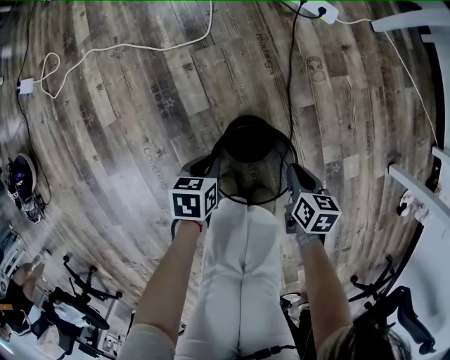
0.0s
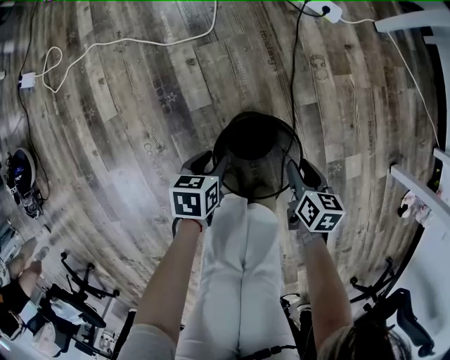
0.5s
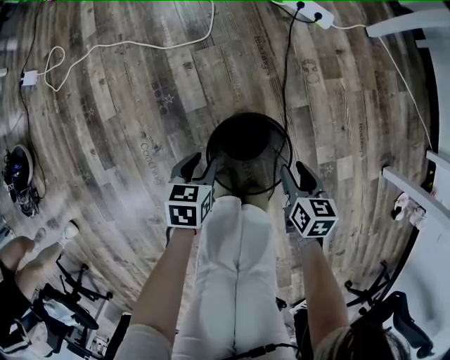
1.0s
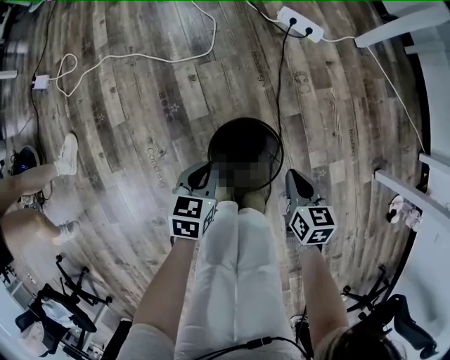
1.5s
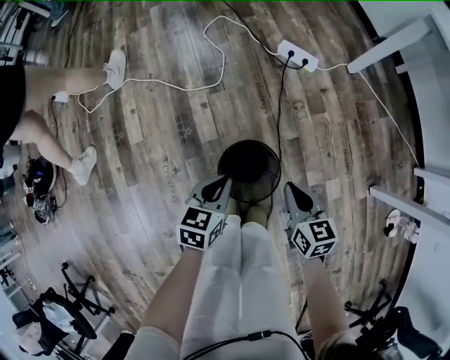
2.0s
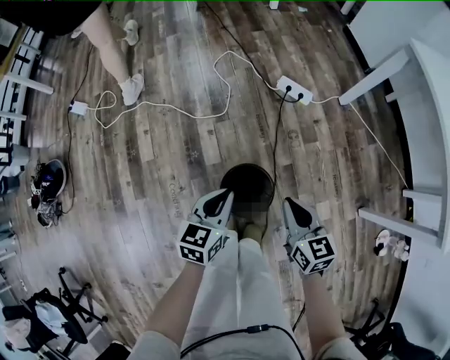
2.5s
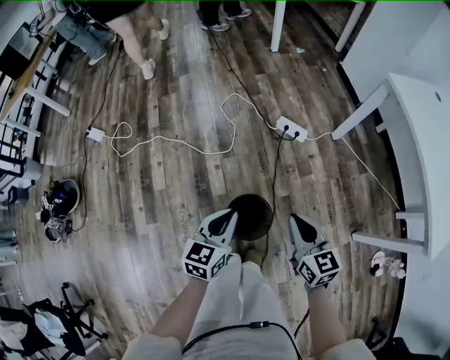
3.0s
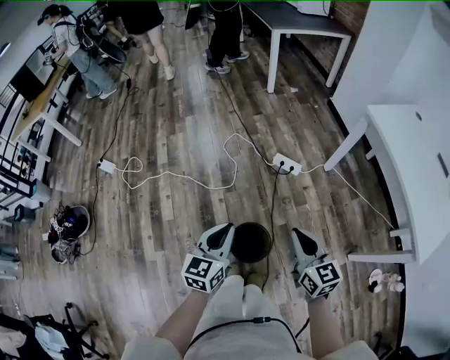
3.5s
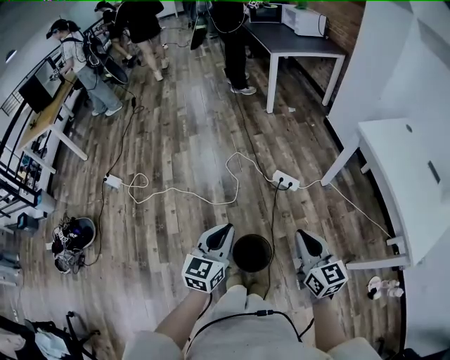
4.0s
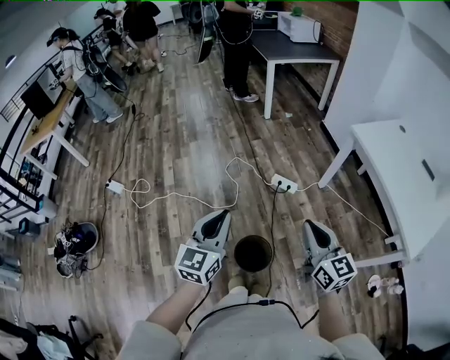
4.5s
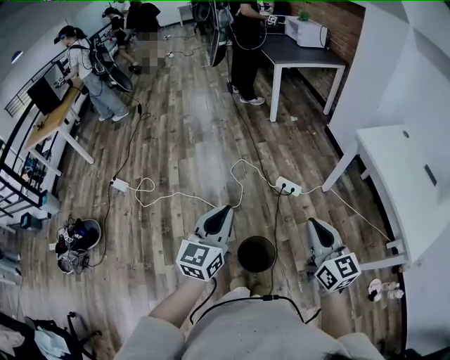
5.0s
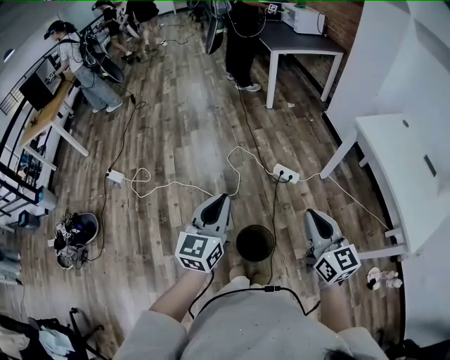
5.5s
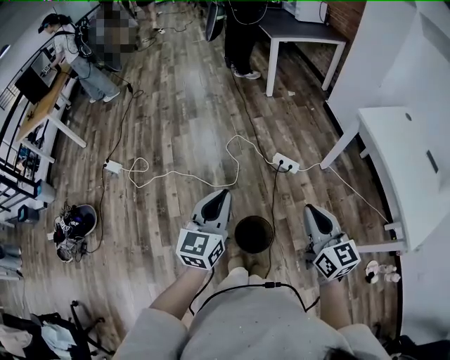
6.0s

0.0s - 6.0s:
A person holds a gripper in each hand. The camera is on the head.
0.0s - 2.0s: Both grippers travel together upward, about 25 cm. The left gripper swivels approximately 30 degrees, and opens and closes again, while the right gripper turns by some 30 degrees, and opens and closes again.
2.0s - 4.0s: Both grippers travel together upward, about 50 cm. The right gripper swivels approximately 30 degrees. Meanwhile the left gripper rotates approximately 30 degrees.
4.0s - 6.0s: The two grippers go roughly 10 cm upward.

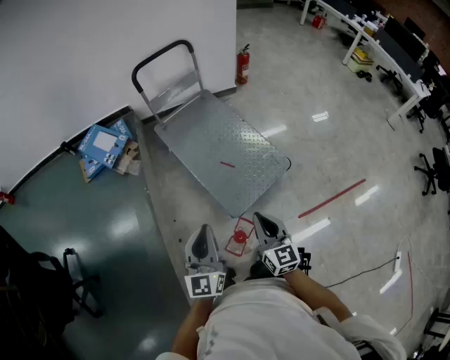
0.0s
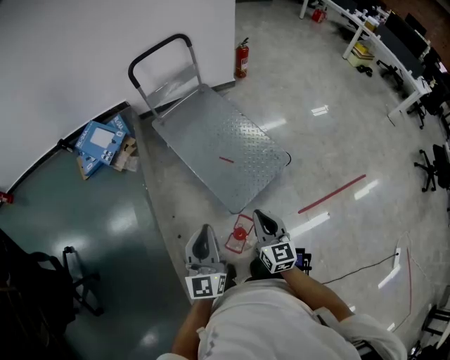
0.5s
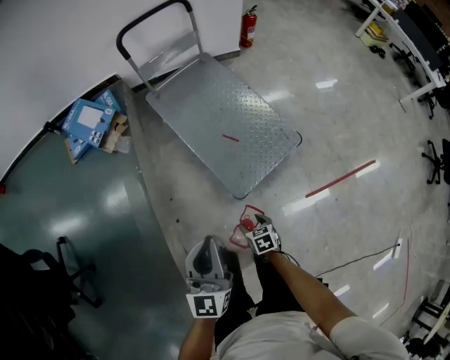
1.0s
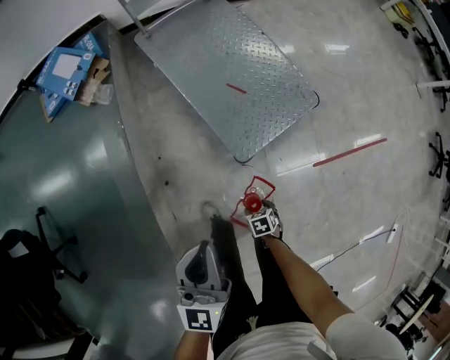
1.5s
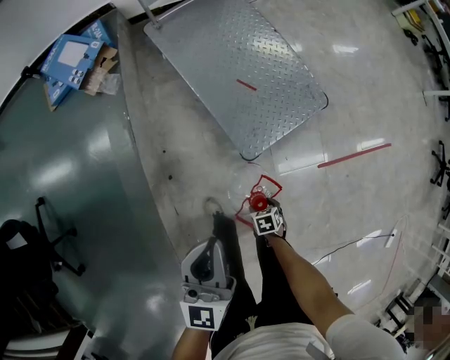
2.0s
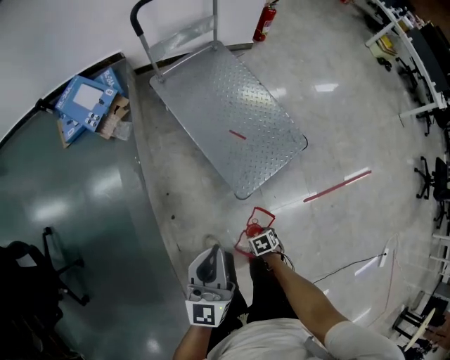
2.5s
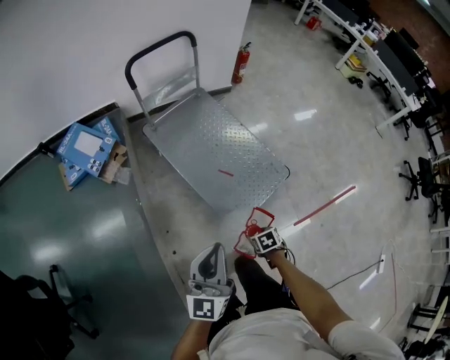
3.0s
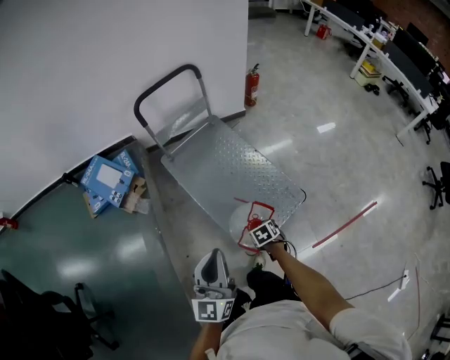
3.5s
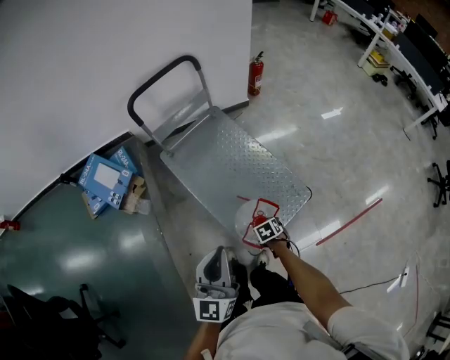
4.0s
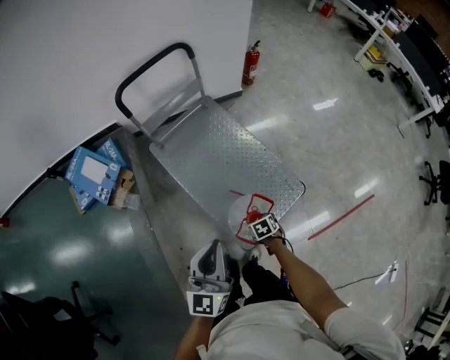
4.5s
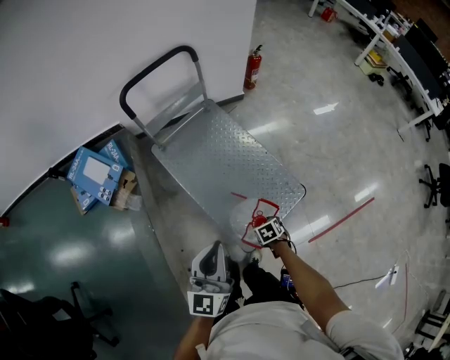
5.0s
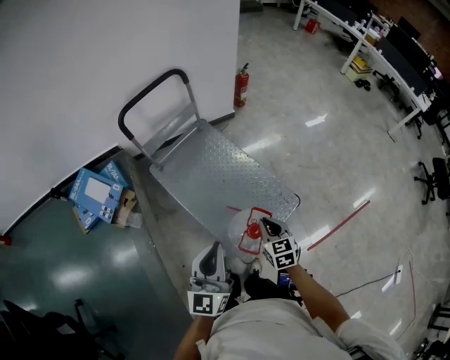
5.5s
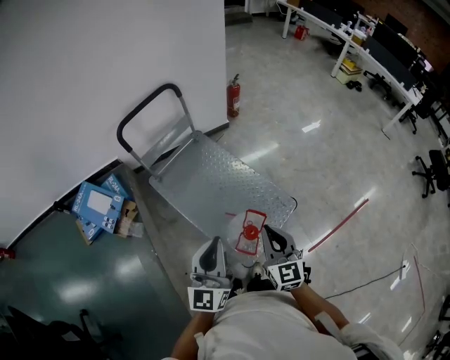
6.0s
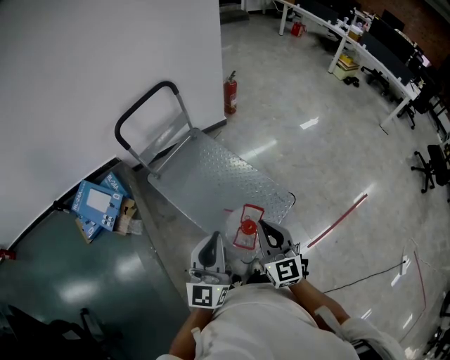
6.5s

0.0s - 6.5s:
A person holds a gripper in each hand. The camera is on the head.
0.0s - 2.0s: The right gripper heads downward, covering approximately 50 cm, tips its fingers downward by roughly 70 degrees, and opens its fingers; the left gripper goes some 15 cm downward.
2.0s - 4.5s: The left gripper shifts by some 35 cm. Meanwhile the right gripper ends up about 40 cm from where it was.
4.5s - 6.5s: The right gripper travels upward by some 40 cm, tilts its fingers about 70 degrees upward, and closes; the left gripper goes about 10 cm upward.

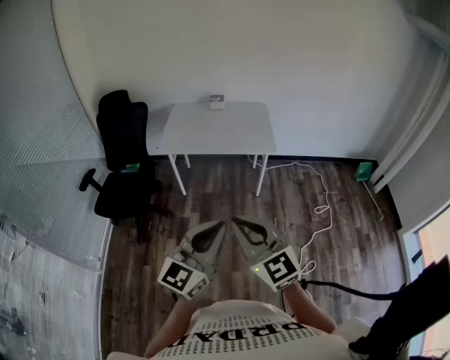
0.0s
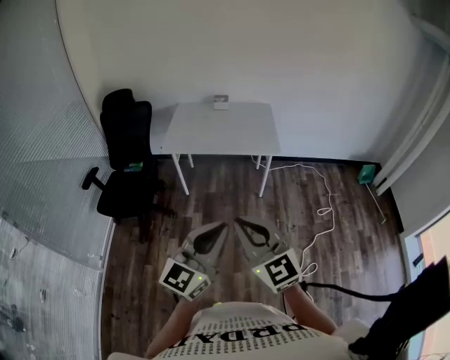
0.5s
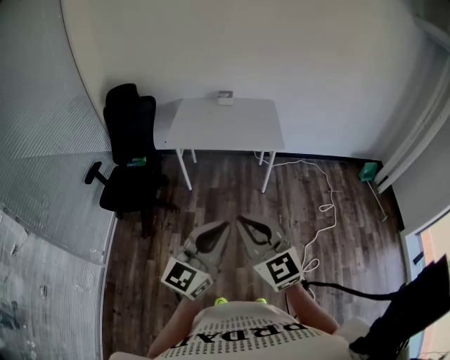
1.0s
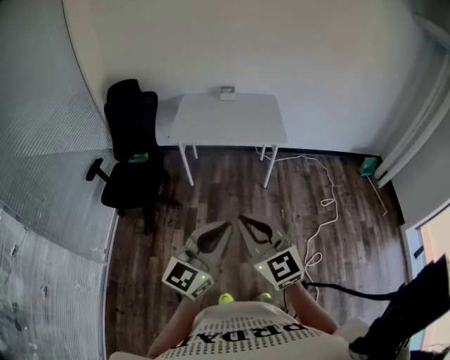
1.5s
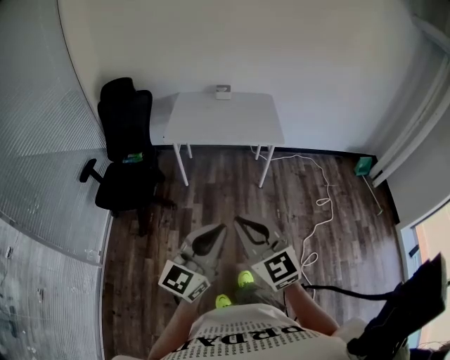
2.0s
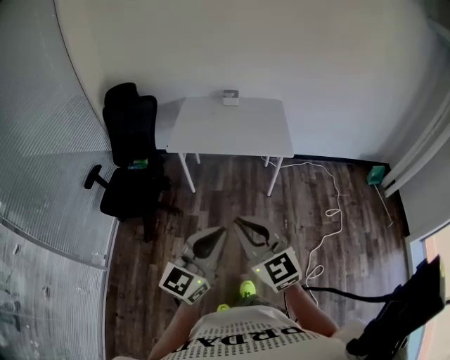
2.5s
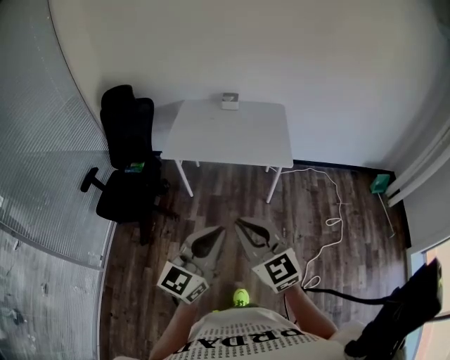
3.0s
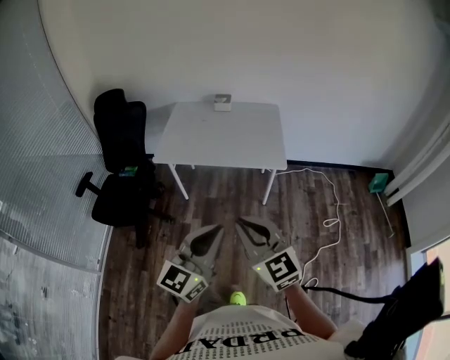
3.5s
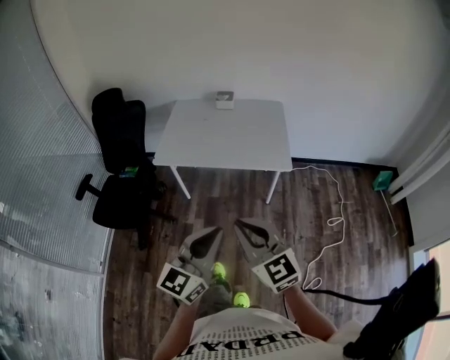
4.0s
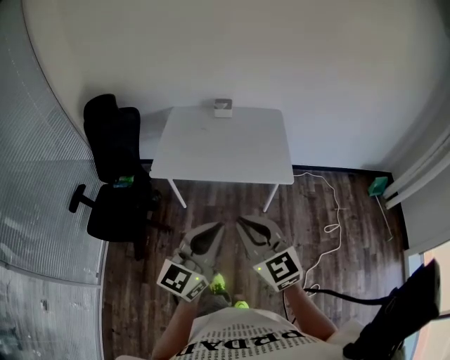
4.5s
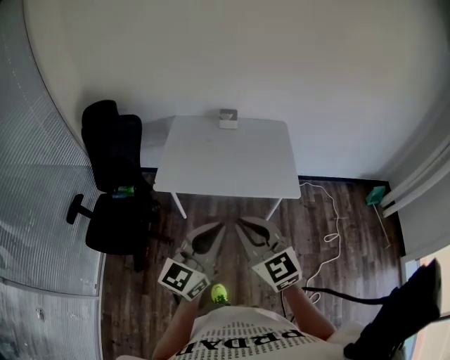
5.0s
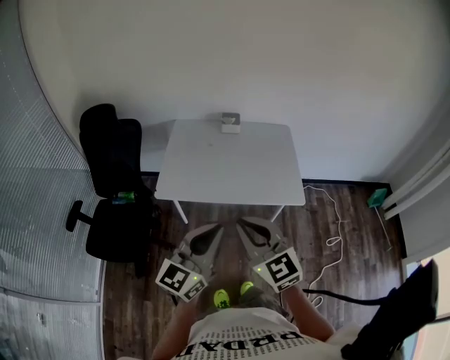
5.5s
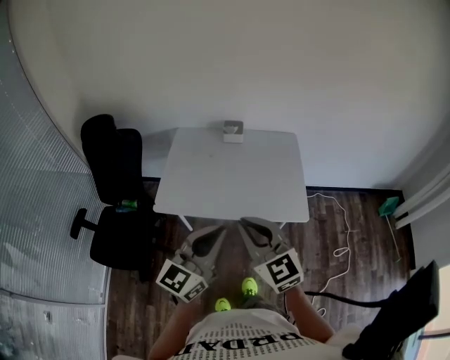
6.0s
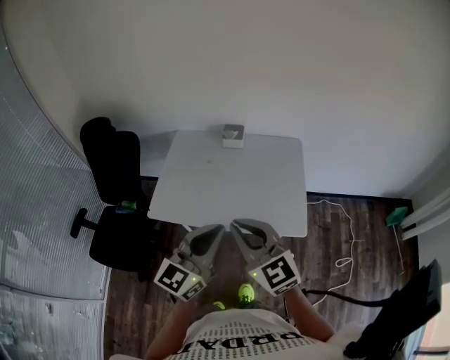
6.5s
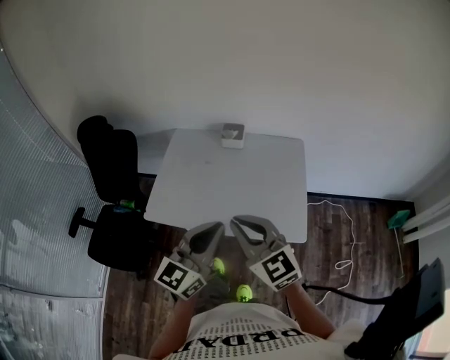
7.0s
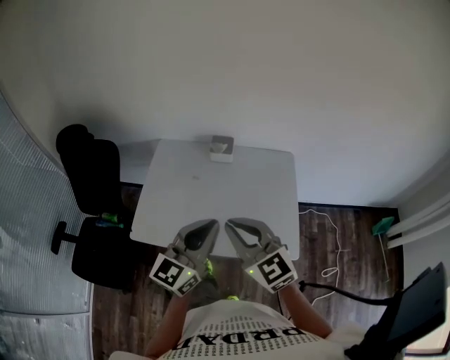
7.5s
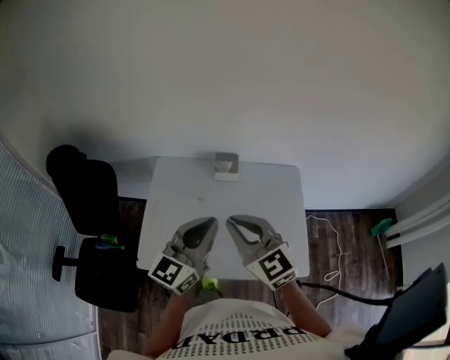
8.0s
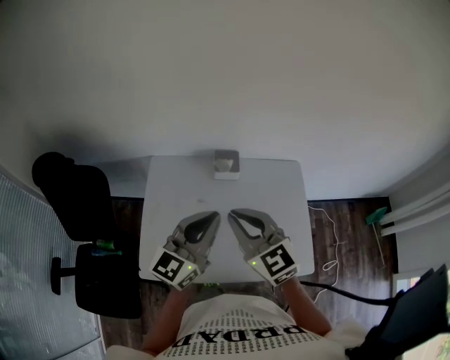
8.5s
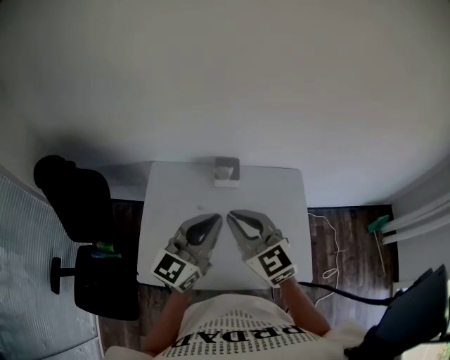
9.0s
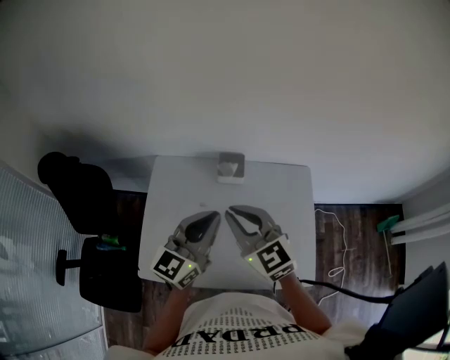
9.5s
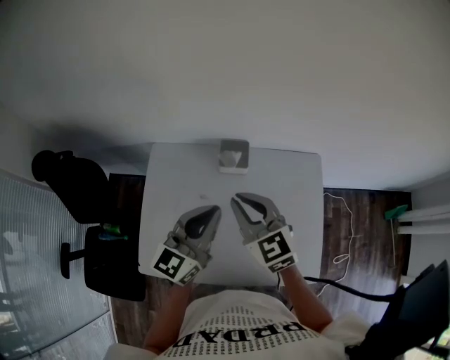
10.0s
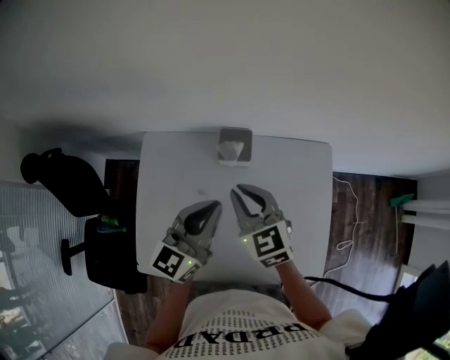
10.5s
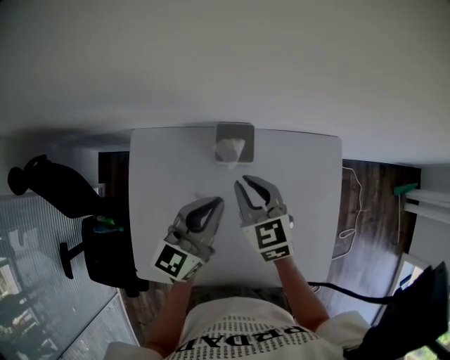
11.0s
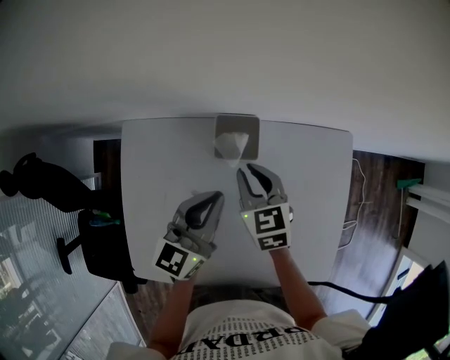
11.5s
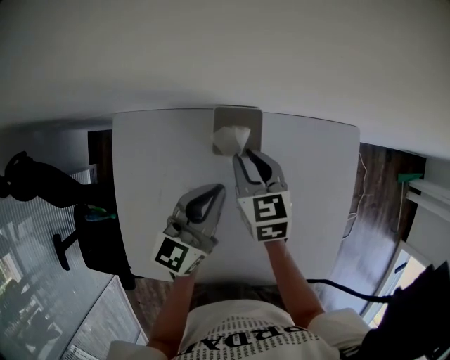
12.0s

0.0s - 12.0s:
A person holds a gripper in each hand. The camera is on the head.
0.0s - 2.0s: Both grippers move to the left, some 5 cm.
2.0s - 4.0s: Both grippers travel together forward and to the right, roughly 25 cm.
4.0s - 6.0s: The two grippers go roughly 30 cm forward.
6.0s - 8.0s: Both grippers move forward, approximately 35 cm.
8.0s - 10.0s: The two grippers go about 20 cm forward and downward.
10.0s - 12.0s: The grippers both shift downward and forward by roughly 25 cm. The right gripper turns by roughly 30 degrees.

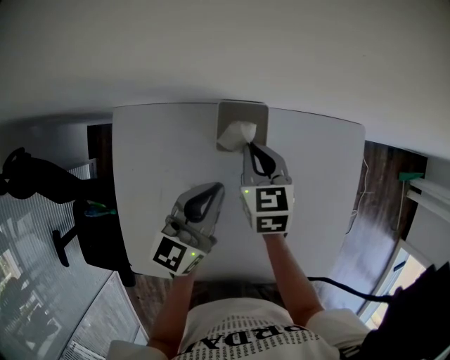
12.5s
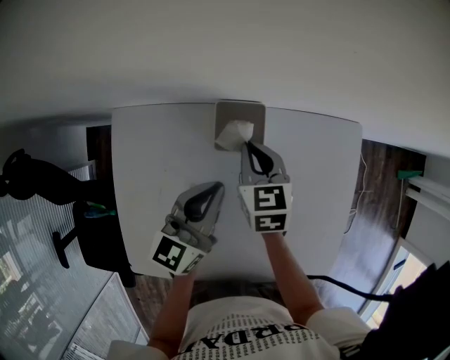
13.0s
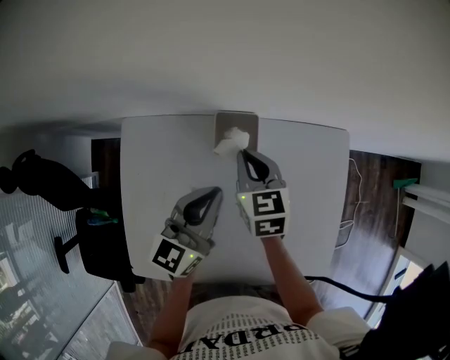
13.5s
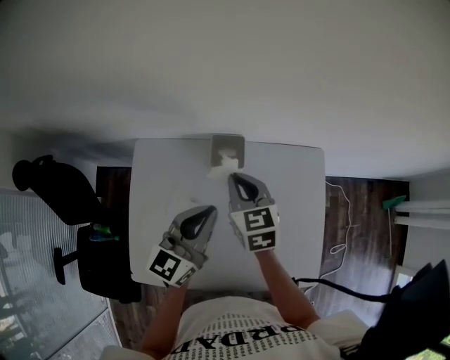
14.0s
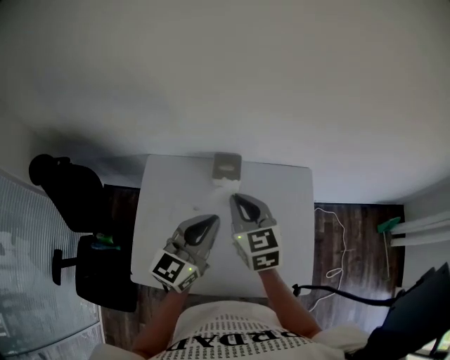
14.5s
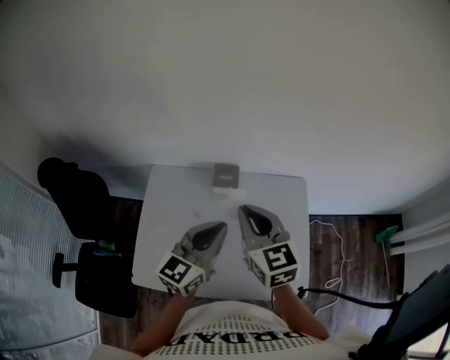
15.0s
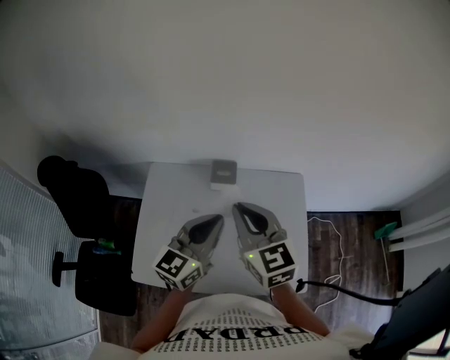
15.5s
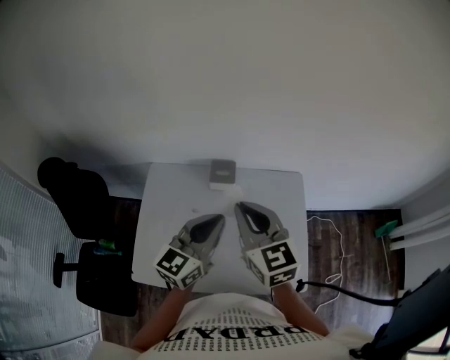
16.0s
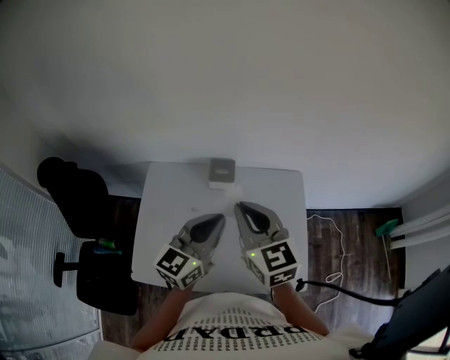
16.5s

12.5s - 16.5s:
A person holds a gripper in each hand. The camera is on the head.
12.5s - 14.5s: The grippers both shift upward and backward by some 25 cm.
14.5s - 16.5s: The left gripper shifts by about 5 cm, while the right gripper heads upward and backward, covering some 10 cm.
